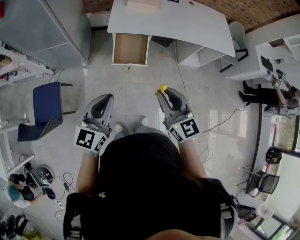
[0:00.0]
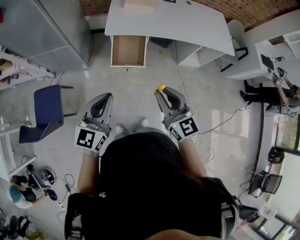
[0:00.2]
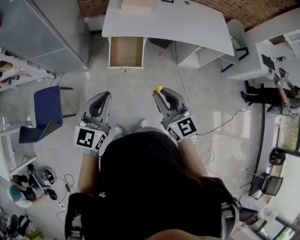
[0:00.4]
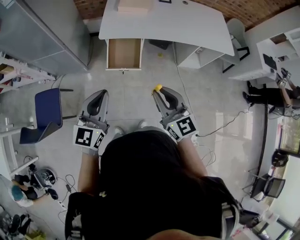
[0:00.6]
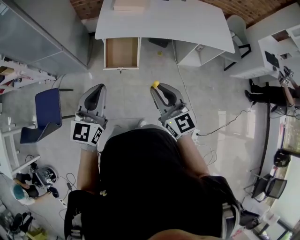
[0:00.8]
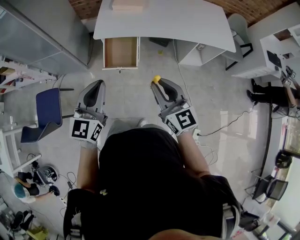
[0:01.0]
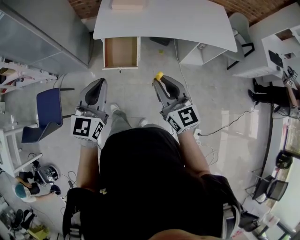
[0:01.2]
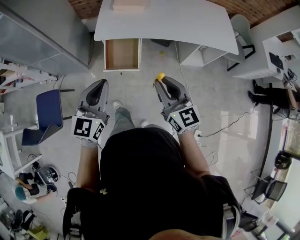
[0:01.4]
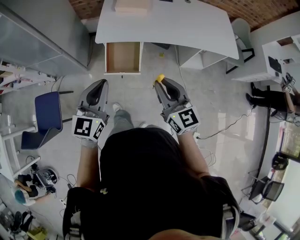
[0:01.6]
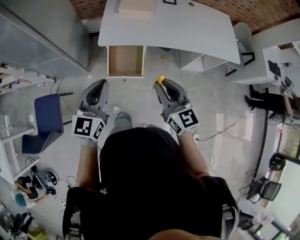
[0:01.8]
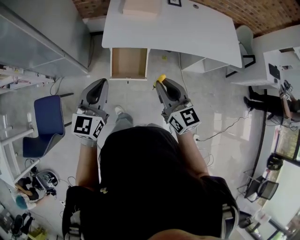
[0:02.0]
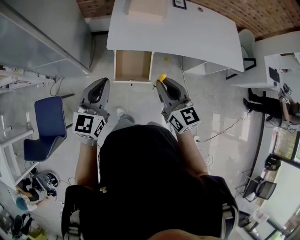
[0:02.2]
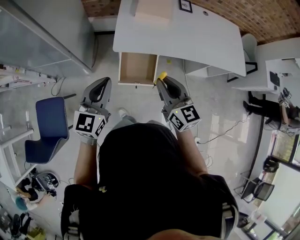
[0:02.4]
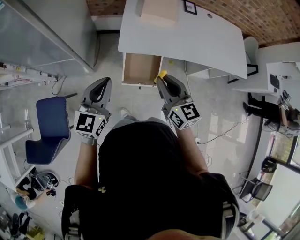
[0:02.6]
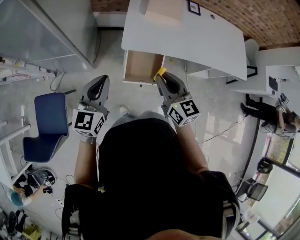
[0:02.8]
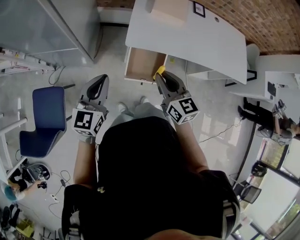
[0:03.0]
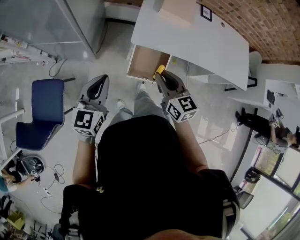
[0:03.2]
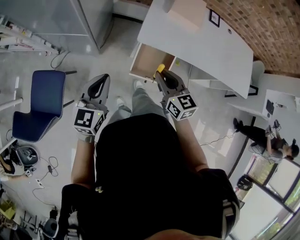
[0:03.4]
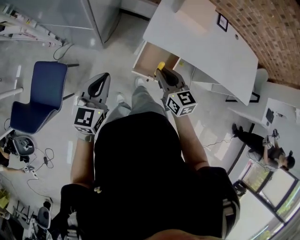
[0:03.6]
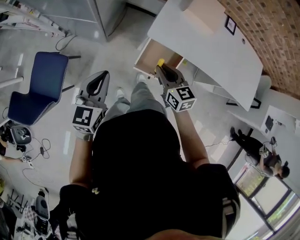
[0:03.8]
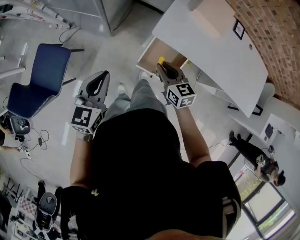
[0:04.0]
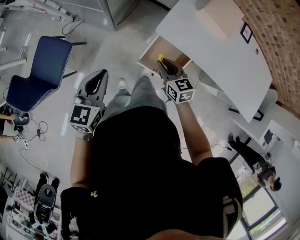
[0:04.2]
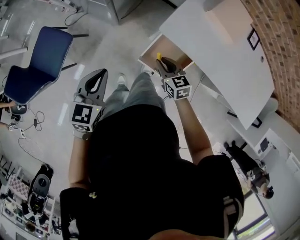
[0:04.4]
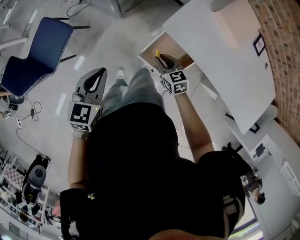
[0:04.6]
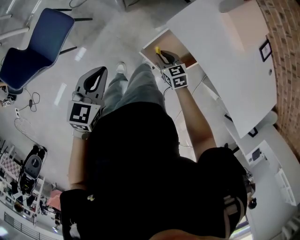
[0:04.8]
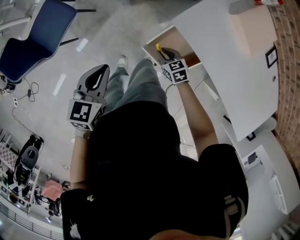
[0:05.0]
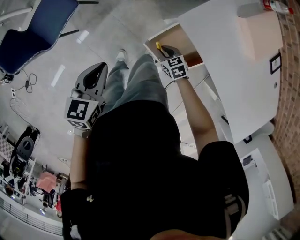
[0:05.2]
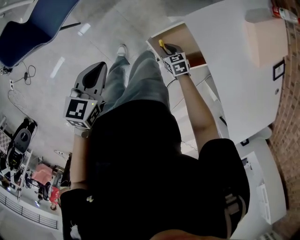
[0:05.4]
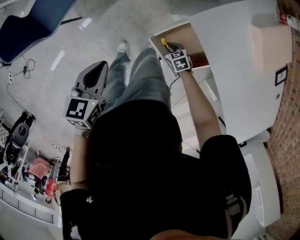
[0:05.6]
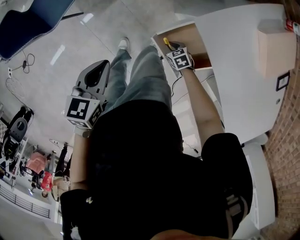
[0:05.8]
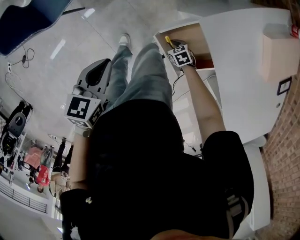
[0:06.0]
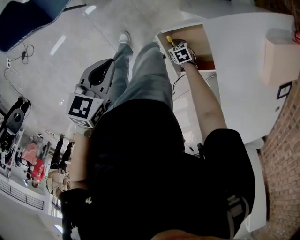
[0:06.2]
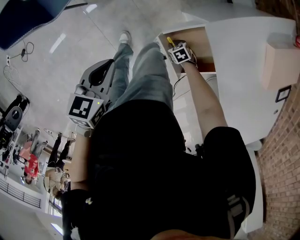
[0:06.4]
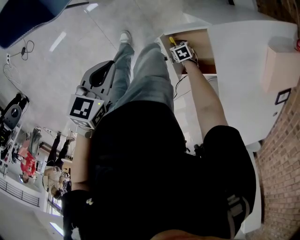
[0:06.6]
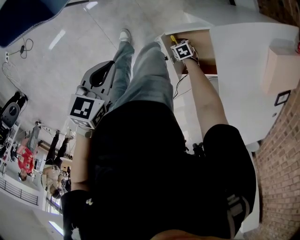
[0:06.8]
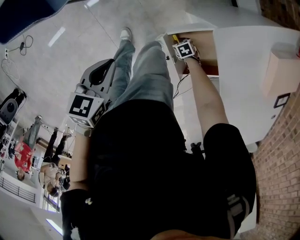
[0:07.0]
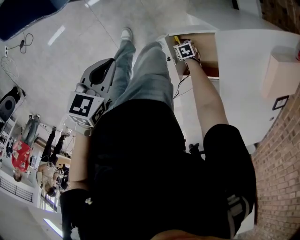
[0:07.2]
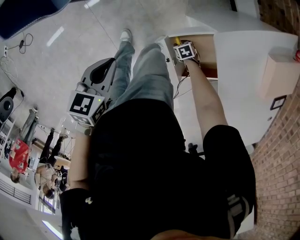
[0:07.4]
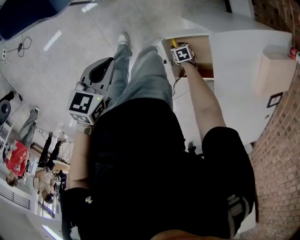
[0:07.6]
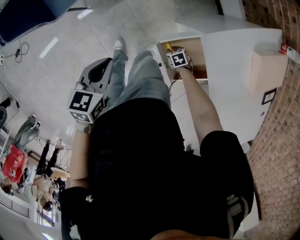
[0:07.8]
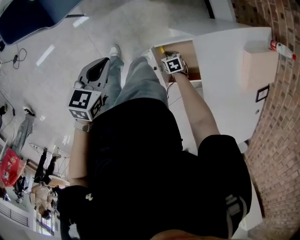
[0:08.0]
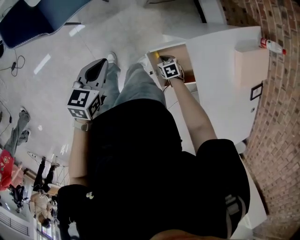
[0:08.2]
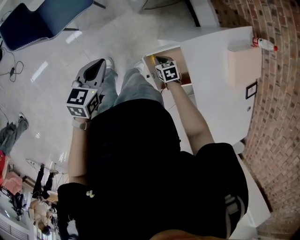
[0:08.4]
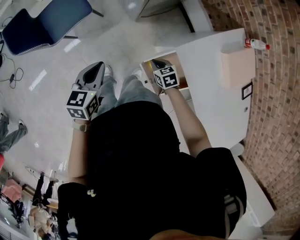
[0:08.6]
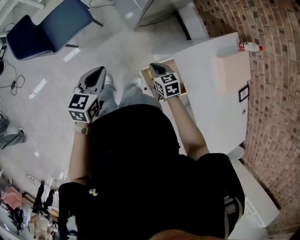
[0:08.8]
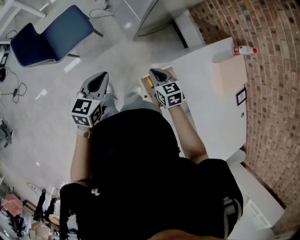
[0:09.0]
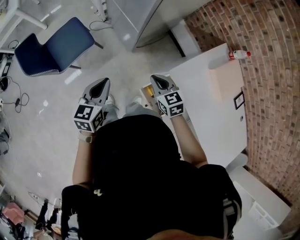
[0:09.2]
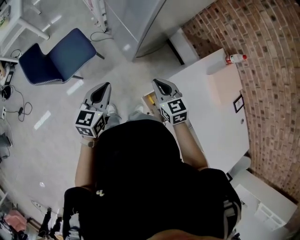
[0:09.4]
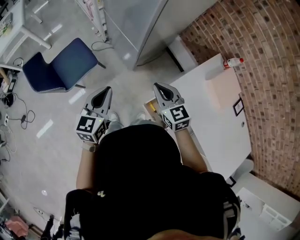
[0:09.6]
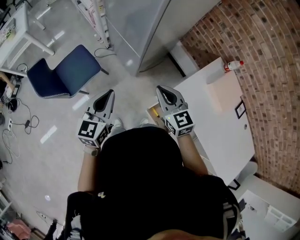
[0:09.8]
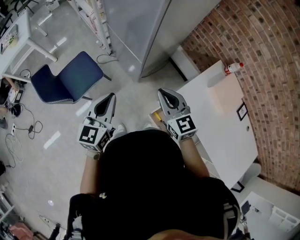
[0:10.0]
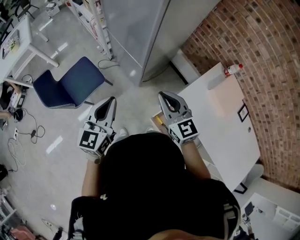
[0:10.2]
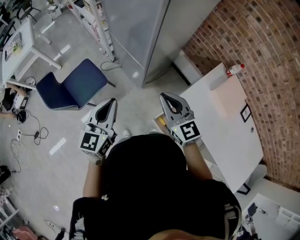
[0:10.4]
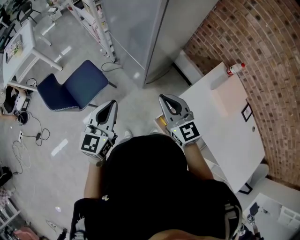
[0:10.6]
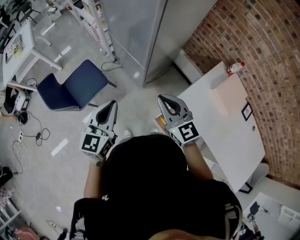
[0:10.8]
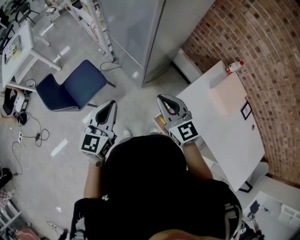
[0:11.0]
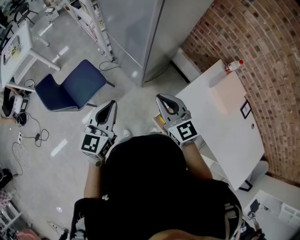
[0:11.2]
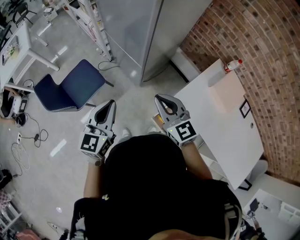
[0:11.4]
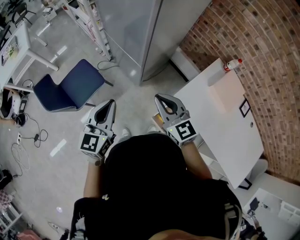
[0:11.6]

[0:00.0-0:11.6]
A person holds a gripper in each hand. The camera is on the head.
0:00.0 to 0:01.4: The grippers both shift to the right and forward by some 15 cm.
0:01.4 to 0:02.8: The grippers both shift to the left and forward by about 30 cm.
0:02.8 to 0:04.4: The right gripper goes about 25 cm downward, and changes its angle by about 40 degrees, while the left gripper shifts some 10 cm downward, and turns by approximately 30 degrees.
0:04.4 to 0:05.8: The left gripper heads downward, covering roughly 10 cm, and rotates some 30 degrees. Meanwhile the right gripper heads downward, covering about 30 cm, and rotates about 40 degrees.
0:05.8 to 0:07.2: The right gripper is displaced downward by some 10 cm.
0:07.2 to 0:08.8: The right gripper travels upward by roughly 35 cm, and changes its angle by roughly 30 degrees, while the left gripper heads upward, covering about 10 cm.
0:08.8 to 0:10.2: The right gripper heads upward, covering about 35 cm, and tips its fingers upward by about 40 degrees, while the left gripper goes approximately 20 cm upward, and swivels about 30 degrees.
0:10.2 to 0:11.6: The grippers stay close to where they were, moving slightly.

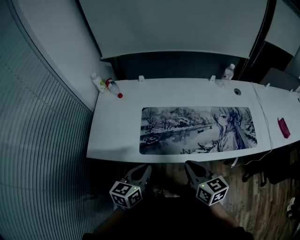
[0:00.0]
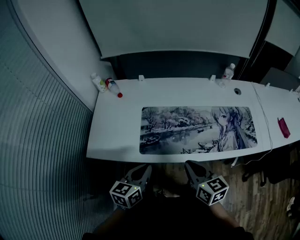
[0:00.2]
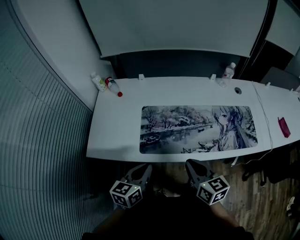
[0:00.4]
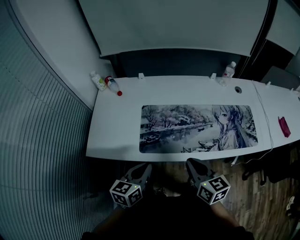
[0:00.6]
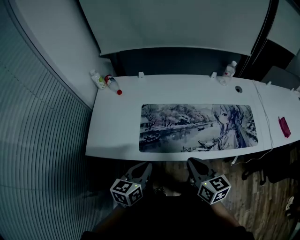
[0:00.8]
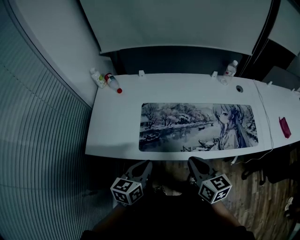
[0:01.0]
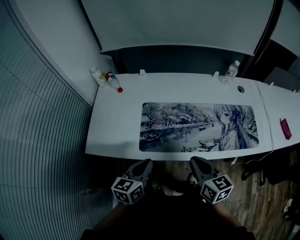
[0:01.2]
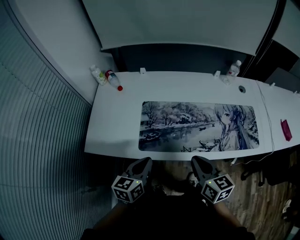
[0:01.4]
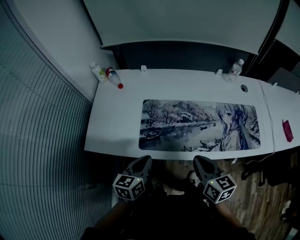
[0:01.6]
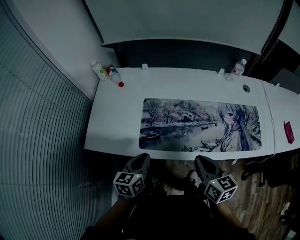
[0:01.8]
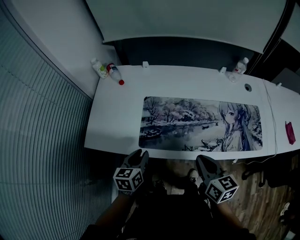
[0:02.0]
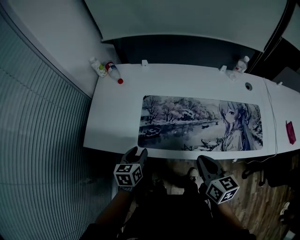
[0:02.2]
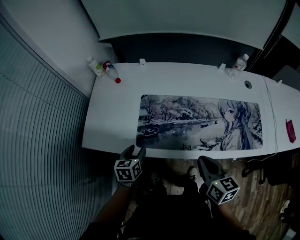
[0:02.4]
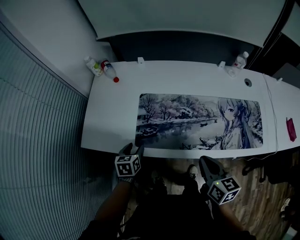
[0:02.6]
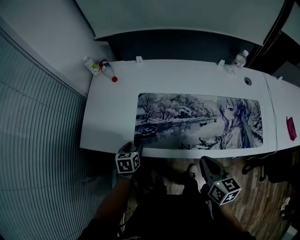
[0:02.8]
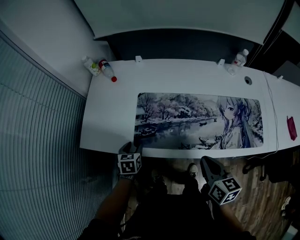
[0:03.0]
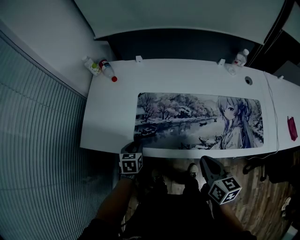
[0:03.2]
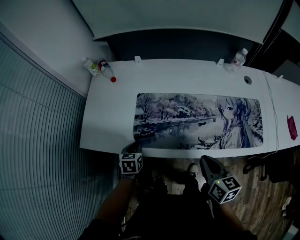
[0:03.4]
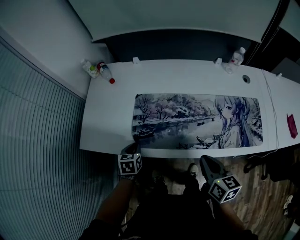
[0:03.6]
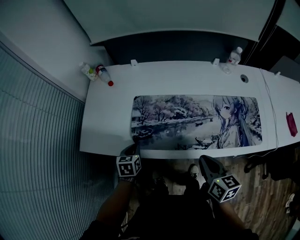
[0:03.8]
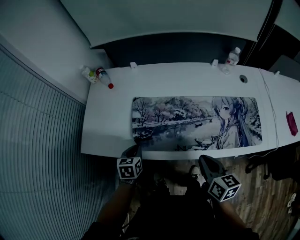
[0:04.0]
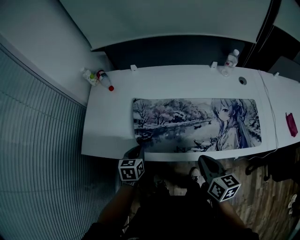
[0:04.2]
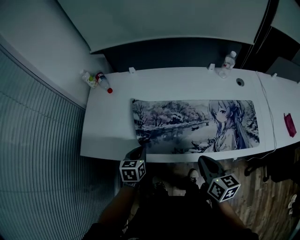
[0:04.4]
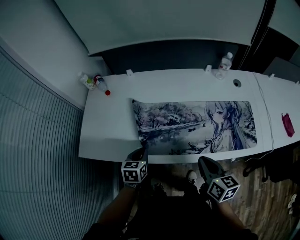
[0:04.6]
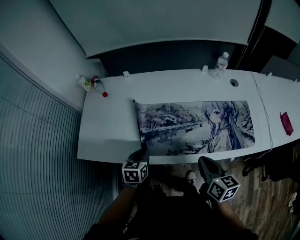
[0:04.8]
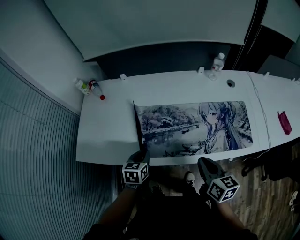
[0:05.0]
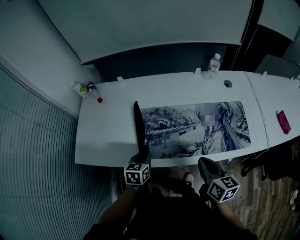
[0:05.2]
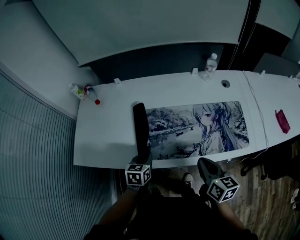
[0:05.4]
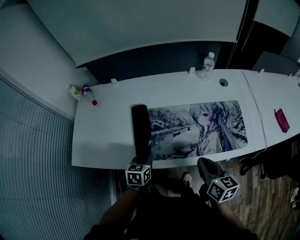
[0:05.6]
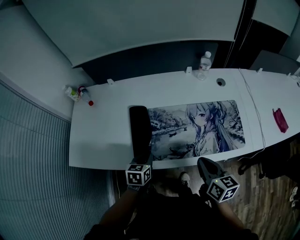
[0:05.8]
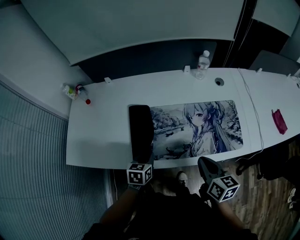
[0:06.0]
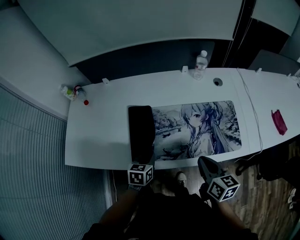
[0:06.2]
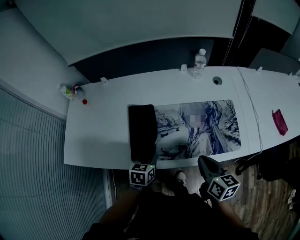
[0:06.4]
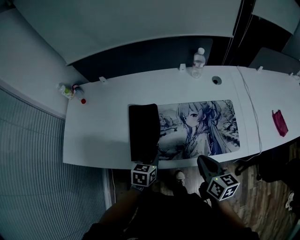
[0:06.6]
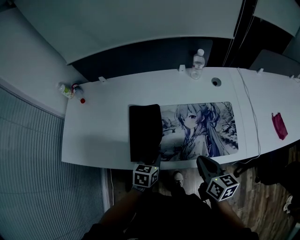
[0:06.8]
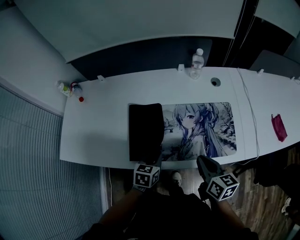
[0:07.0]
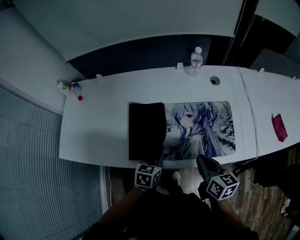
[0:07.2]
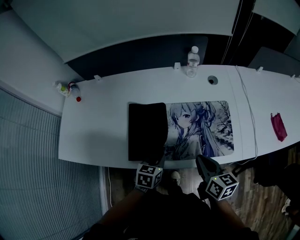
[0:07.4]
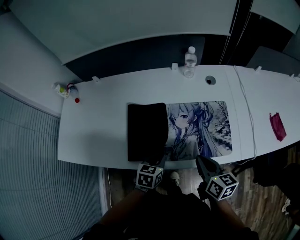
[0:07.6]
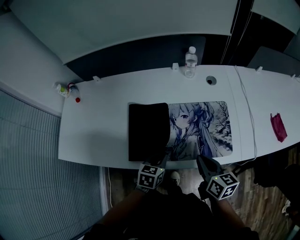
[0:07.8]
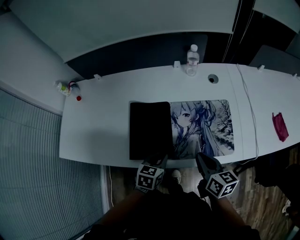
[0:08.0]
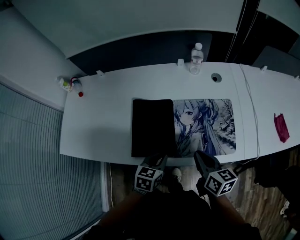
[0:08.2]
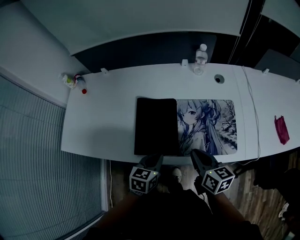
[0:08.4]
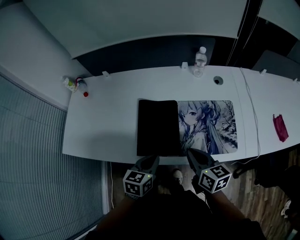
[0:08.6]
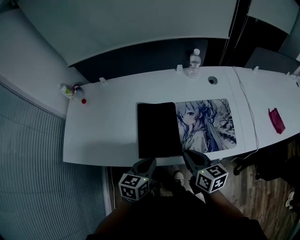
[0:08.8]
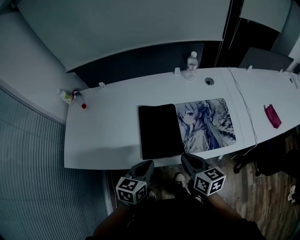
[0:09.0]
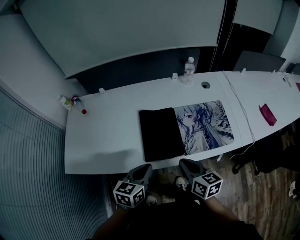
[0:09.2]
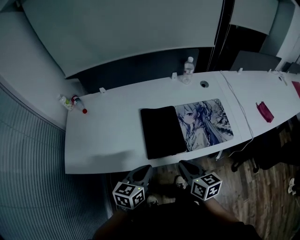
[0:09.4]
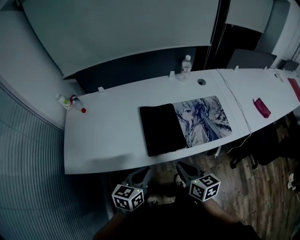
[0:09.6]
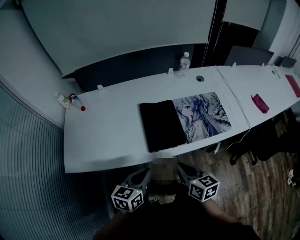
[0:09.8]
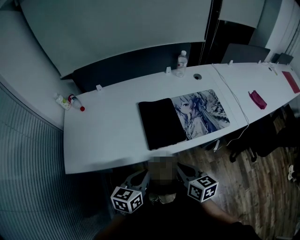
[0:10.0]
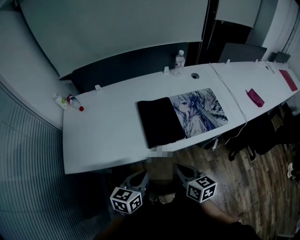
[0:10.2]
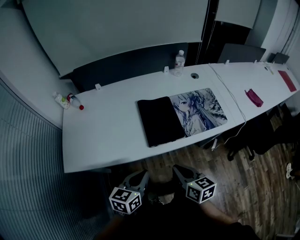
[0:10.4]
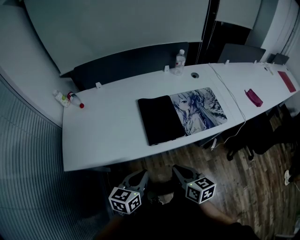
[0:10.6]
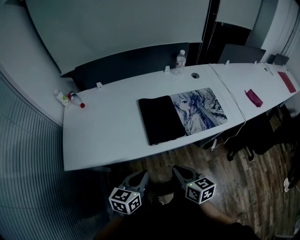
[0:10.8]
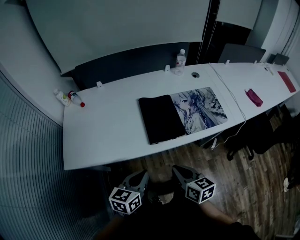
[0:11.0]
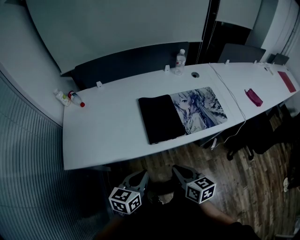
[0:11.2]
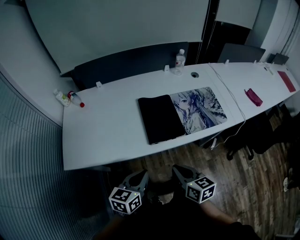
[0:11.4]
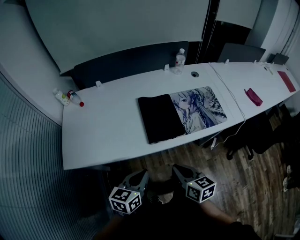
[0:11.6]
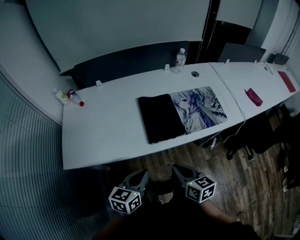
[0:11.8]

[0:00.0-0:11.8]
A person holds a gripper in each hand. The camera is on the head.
0:00.0 to 0:01.4: The grippers stay close to where they were, moving slightly.
0:01.4 to 0:03.0: The left gripper shifts approximately 20 cm downward and forward, turns by some 30 degrees, and opens. Meanwhile the right gripper travels to the right by about 5 cm.
0:03.0 to 0:04.4: The left gripper travels to the right and upward by roughly 10 cm, and closes up.
0:04.4 to 0:06.0: Both grippers move to the right, roughly 15 cm.
0:06.0 to 0:07.4: The right gripper goes about 10 cm to the right, while the left gripper shifts about 15 cm to the right.
0:07.4 to 0:08.8: The right gripper shifts roughly 10 cm to the left. The left gripper goes roughly 10 cm upward and to the left.
0:08.8 to 0:10.4: The grippers both shift backward and to the left by approximately 20 cm.
0:10.4 to 0:11.8: The grippers move only a little.
